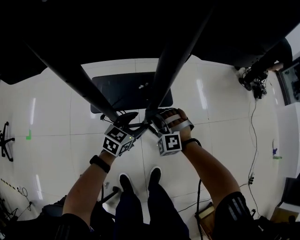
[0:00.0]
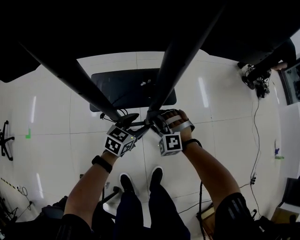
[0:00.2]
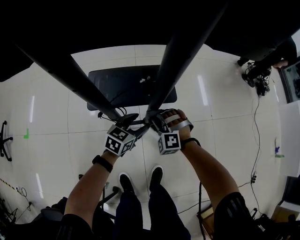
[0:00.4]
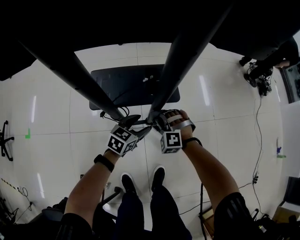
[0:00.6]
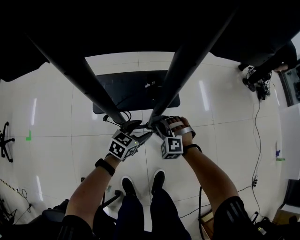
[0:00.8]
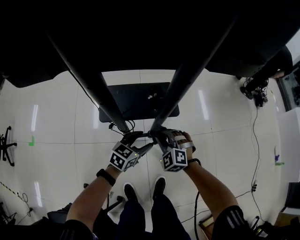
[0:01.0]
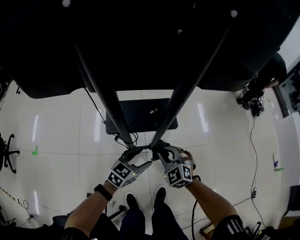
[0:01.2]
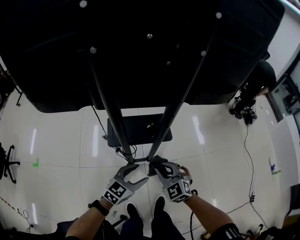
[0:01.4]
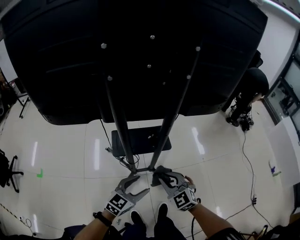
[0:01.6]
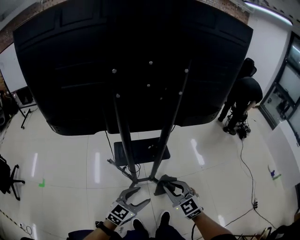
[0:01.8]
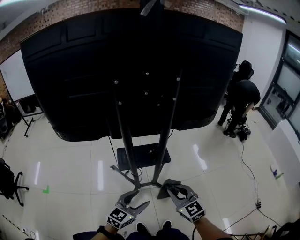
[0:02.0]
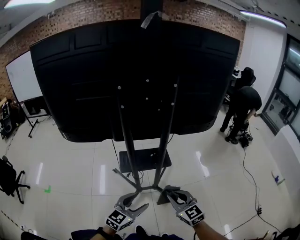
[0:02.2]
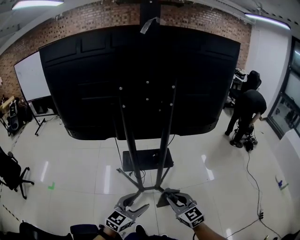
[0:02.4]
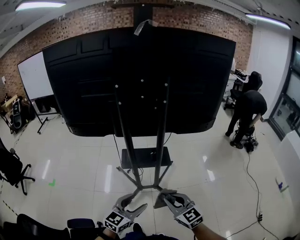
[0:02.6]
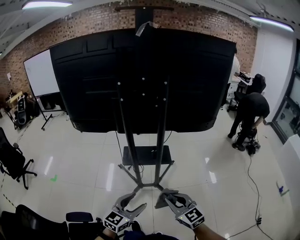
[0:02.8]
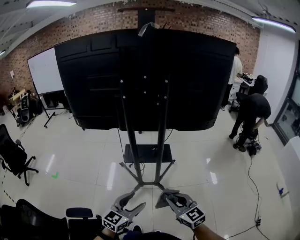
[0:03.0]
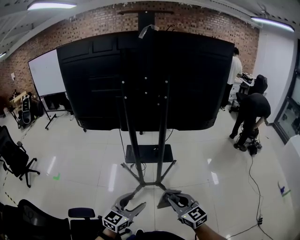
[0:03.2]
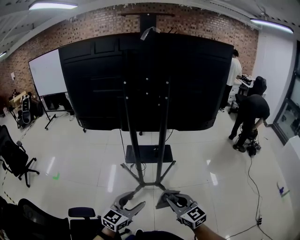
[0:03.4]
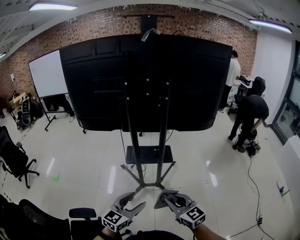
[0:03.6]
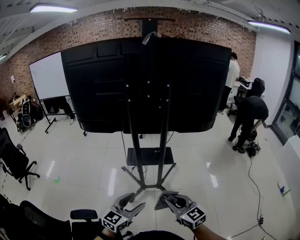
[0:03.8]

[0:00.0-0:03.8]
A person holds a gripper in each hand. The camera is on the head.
0:00.0 to 0:01.2: The right gripper travels backward and upward by some 10 cm, and changes its angle by roughly 40 degrees. The left gripper heads backward, covering roughly 10 cm, and reaches about 10 cm downward, then returns.
0:01.2 to 0:02.6: Both grippers travel together upward and backward, approximately 35 cm. The left gripper changes its angle by about 20 degrees. The right gripper rotates some 30 degrees.
0:02.6 to 0:03.8: The two grippers go approximately 10 cm backward.

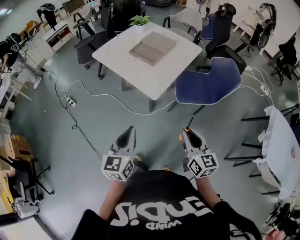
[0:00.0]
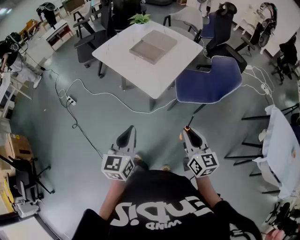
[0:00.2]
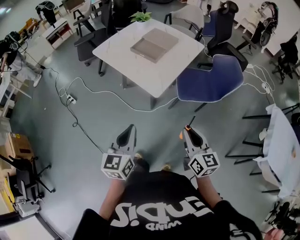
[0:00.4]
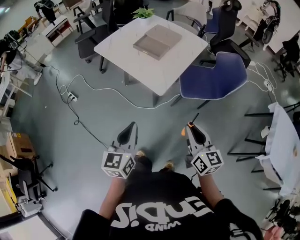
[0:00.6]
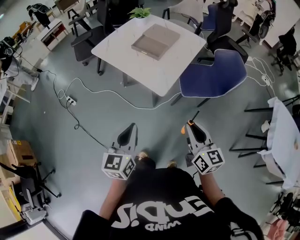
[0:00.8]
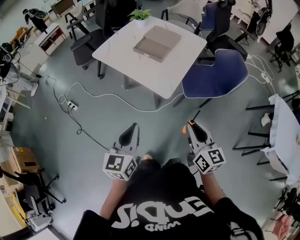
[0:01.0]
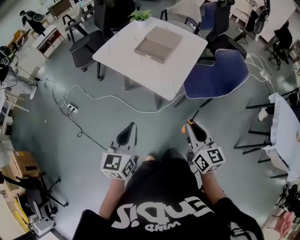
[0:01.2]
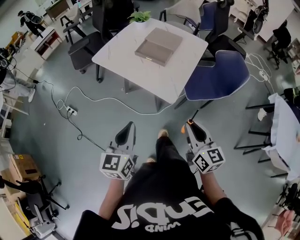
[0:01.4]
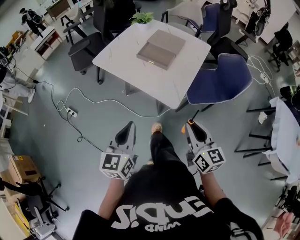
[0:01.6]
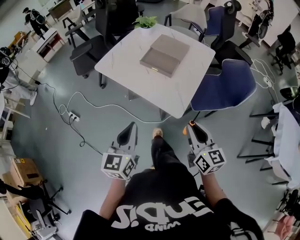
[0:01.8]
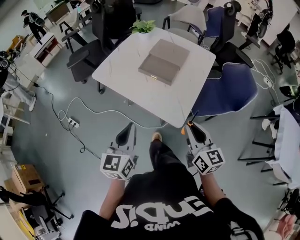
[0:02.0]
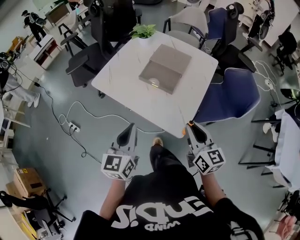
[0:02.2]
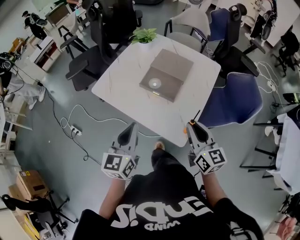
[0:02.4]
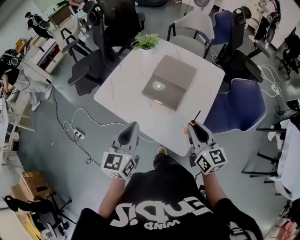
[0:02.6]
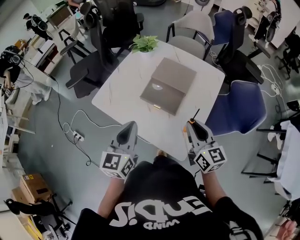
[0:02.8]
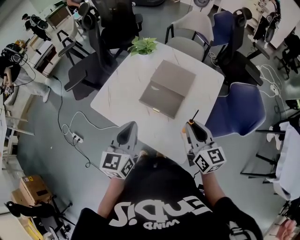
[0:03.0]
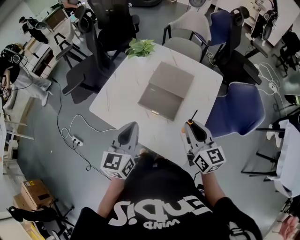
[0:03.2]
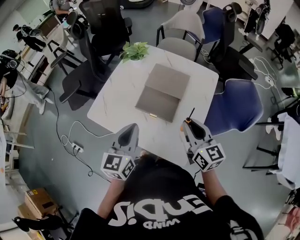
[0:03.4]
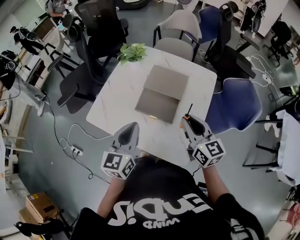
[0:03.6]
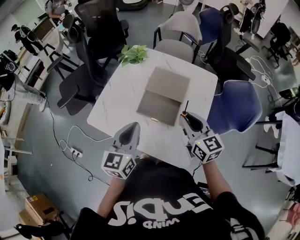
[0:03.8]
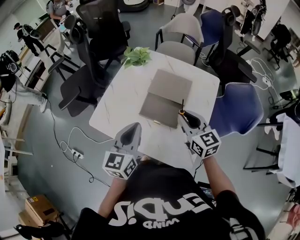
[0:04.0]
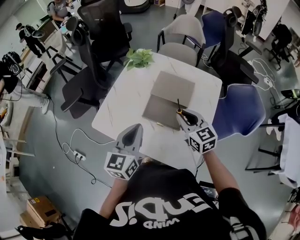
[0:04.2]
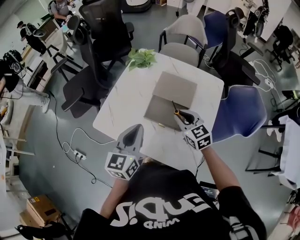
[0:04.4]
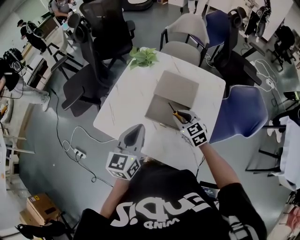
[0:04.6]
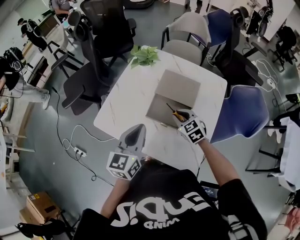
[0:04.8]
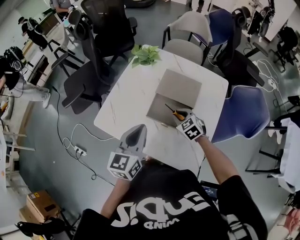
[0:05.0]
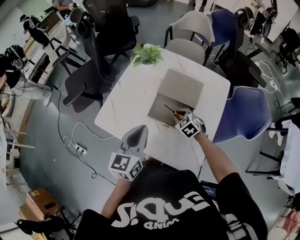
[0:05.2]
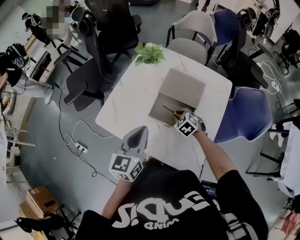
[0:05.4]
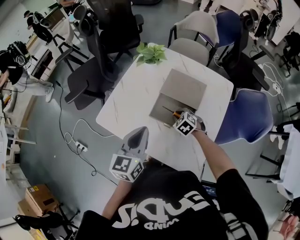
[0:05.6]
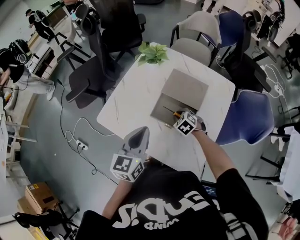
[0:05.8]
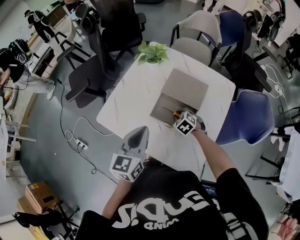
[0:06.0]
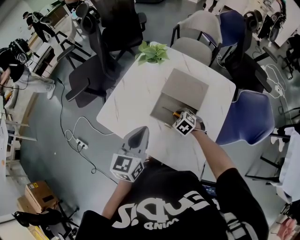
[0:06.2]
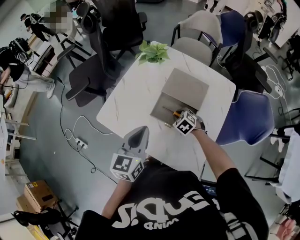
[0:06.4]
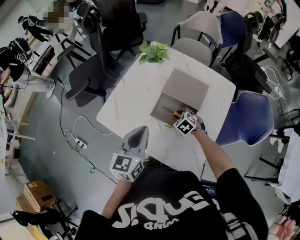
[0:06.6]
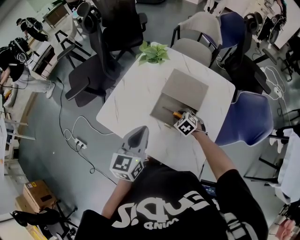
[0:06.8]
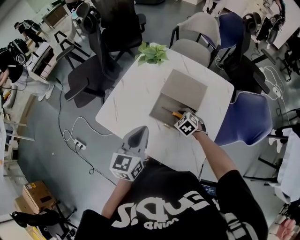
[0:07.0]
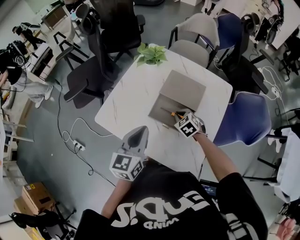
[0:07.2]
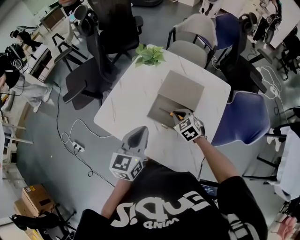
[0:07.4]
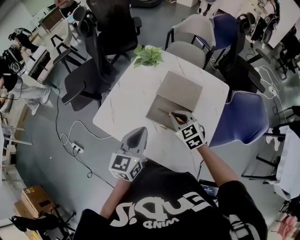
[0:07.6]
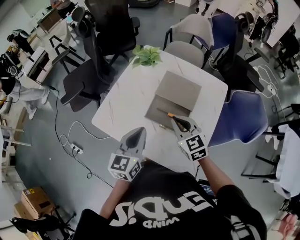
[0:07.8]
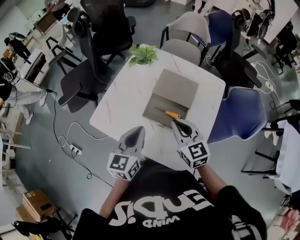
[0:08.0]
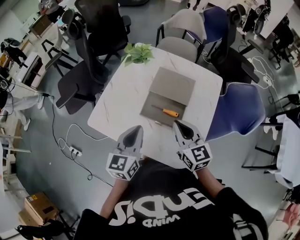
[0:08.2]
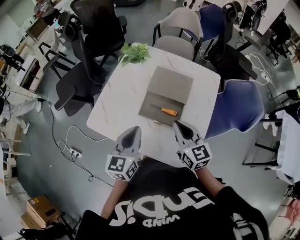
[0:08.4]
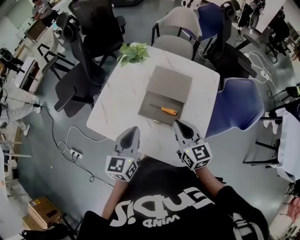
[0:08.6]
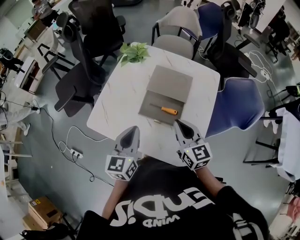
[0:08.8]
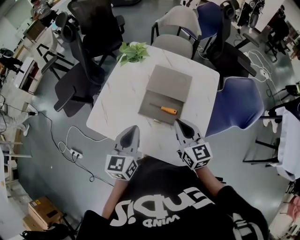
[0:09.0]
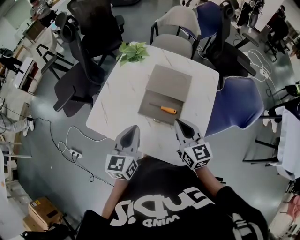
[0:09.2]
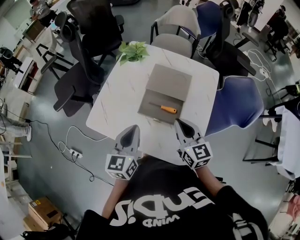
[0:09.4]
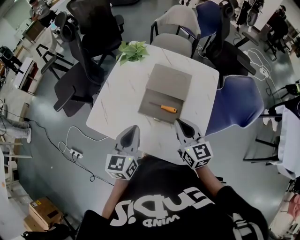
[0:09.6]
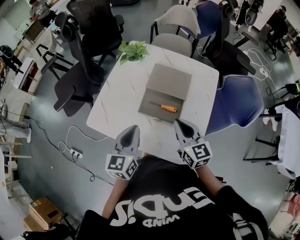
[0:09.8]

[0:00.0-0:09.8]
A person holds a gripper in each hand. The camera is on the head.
0:00.0 to 0:01.4: The two grippers go approximately 15 cm to the left and forward.
0:01.4 to 0:02.8: The two grippers go approximately 35 cm forward.
0:02.8 to 0:04.2: The right gripper moves forward and to the left, some 15 cm, while the left gripper heads forward, covering roughly 10 cm.
0:04.2 to 0:05.6: The right gripper travels downward by some 20 cm, and angles its fingers downward, by roughly 40 degrees.
0:05.6 to 0:07.0: There are only small adjustments of the grippers.
0:07.0 to 0:08.4: The right gripper goes about 25 cm upward and backward, angles its fingers upward, by approximately 40 degrees, and closes its fingers.
0:08.4 to 0:09.8: Neither gripper changes place.

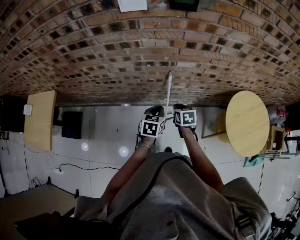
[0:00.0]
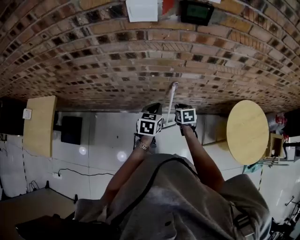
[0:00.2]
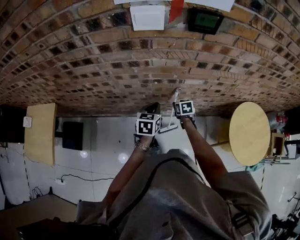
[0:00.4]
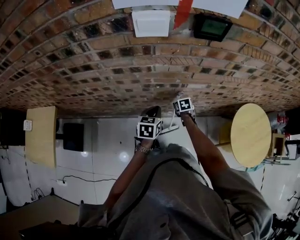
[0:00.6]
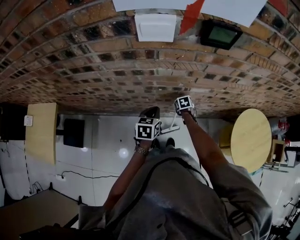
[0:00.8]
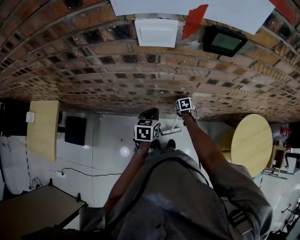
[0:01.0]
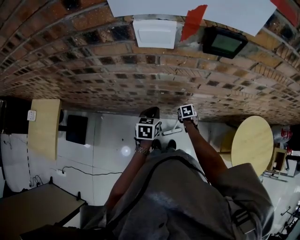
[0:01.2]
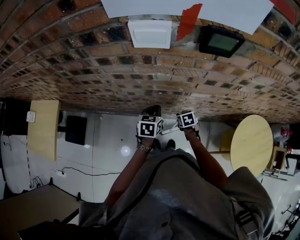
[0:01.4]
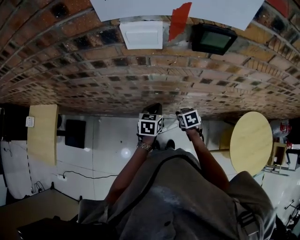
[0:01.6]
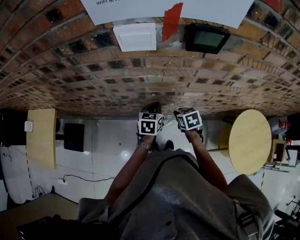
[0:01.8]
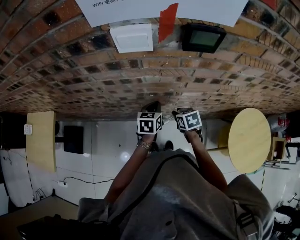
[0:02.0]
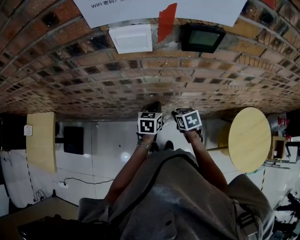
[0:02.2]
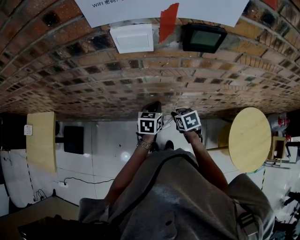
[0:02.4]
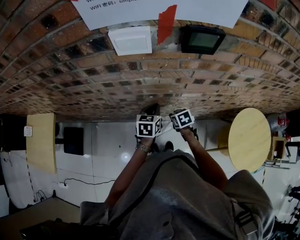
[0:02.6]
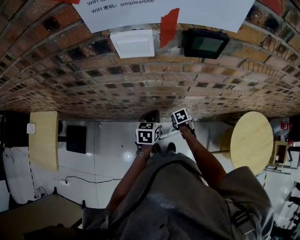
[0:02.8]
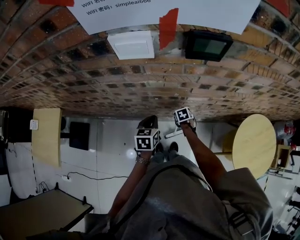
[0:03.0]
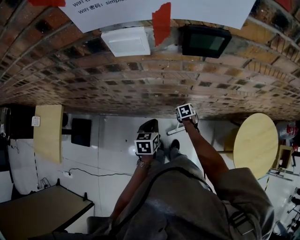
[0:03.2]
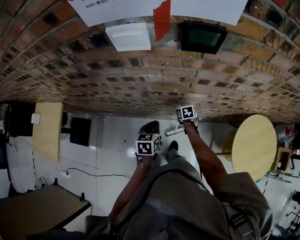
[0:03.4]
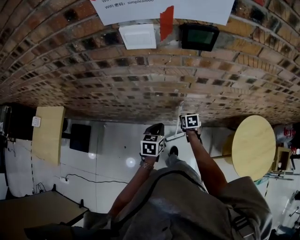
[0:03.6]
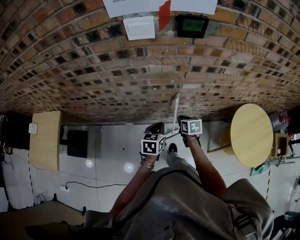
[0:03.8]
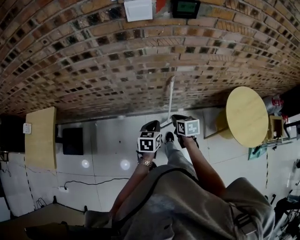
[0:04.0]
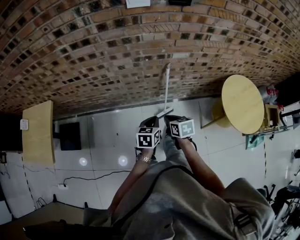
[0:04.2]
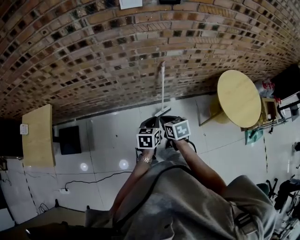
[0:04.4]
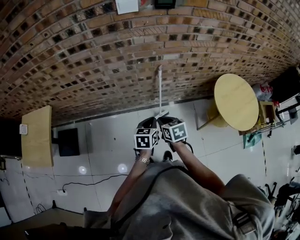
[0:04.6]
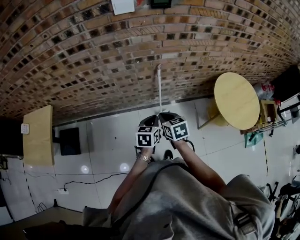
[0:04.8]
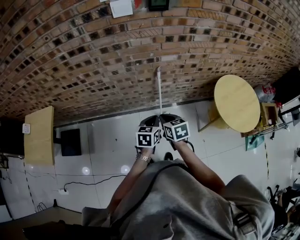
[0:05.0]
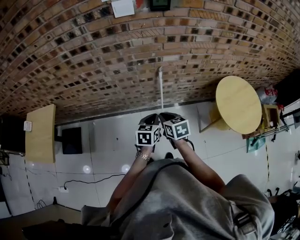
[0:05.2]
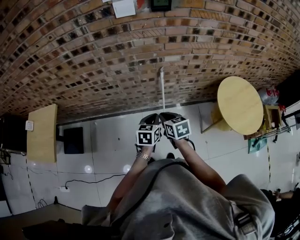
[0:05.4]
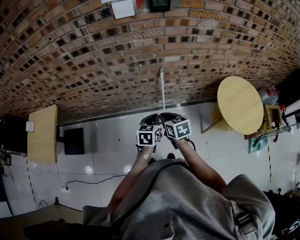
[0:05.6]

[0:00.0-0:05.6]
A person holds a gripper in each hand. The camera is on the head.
0:00.0 to 0:01.4: The right gripper is displaced forward and downward by some 15 cm, and opens its fingers, while the left gripper travels forward and to the left by roughly 20 cm.
0:01.4 to 0:02.8: The right gripper moves about 15 cm upward and comes back.
0:02.8 to 0:04.2: The left gripper heads backward, covering approximately 30 cm. Meanwhile the right gripper moves backward and upward, roughly 30 cm, rotates about 30 degrees, and closes its fingers.
0:04.2 to 0:05.6: The left gripper shifts roughly 5 cm to the right. Meanwhile the right gripper is displaced upward by roughly 5 cm.

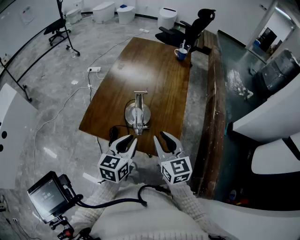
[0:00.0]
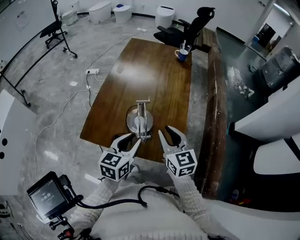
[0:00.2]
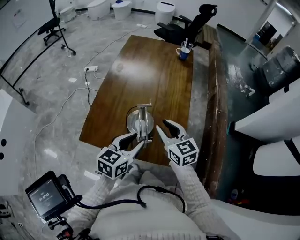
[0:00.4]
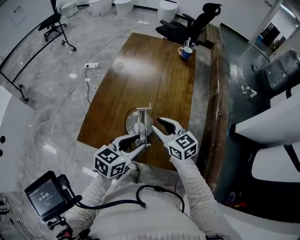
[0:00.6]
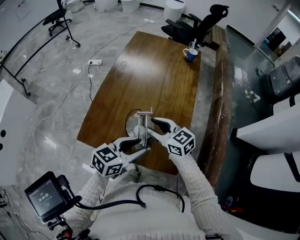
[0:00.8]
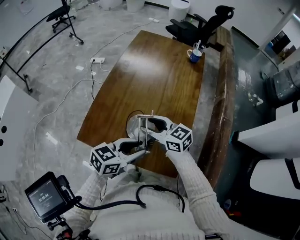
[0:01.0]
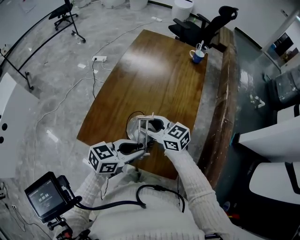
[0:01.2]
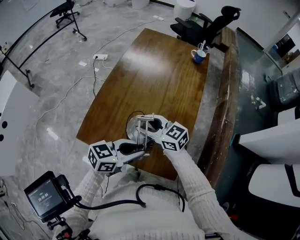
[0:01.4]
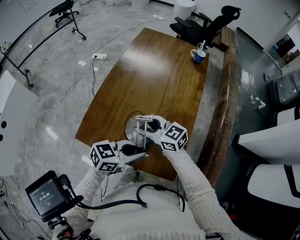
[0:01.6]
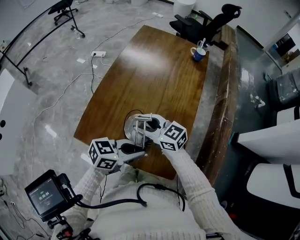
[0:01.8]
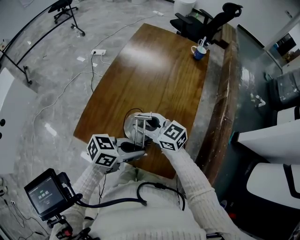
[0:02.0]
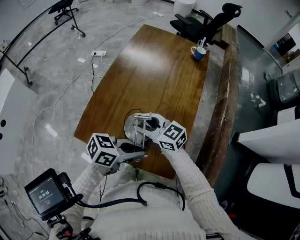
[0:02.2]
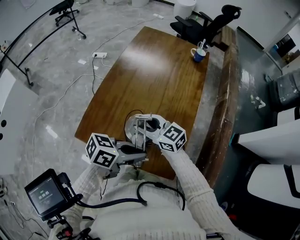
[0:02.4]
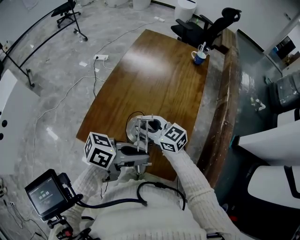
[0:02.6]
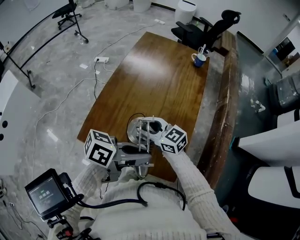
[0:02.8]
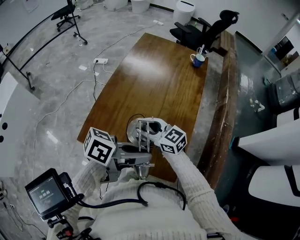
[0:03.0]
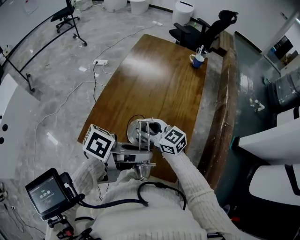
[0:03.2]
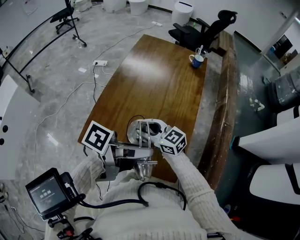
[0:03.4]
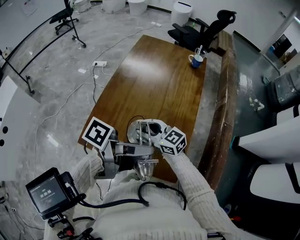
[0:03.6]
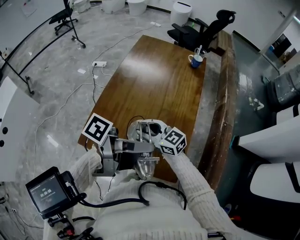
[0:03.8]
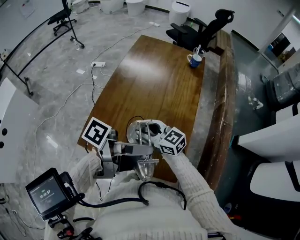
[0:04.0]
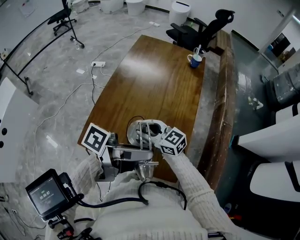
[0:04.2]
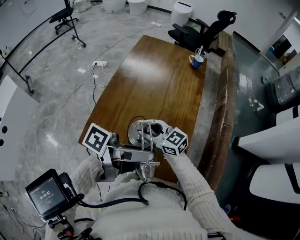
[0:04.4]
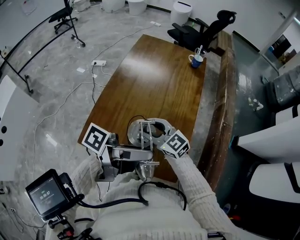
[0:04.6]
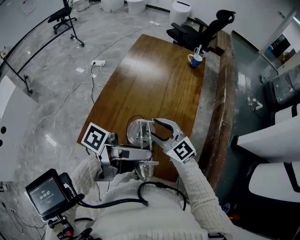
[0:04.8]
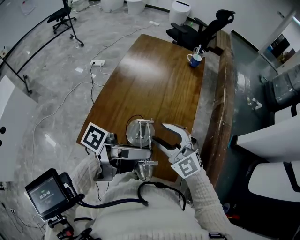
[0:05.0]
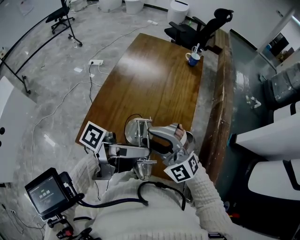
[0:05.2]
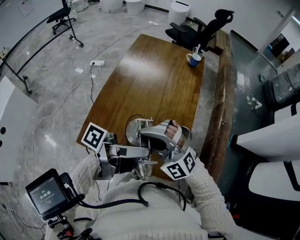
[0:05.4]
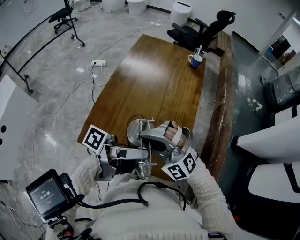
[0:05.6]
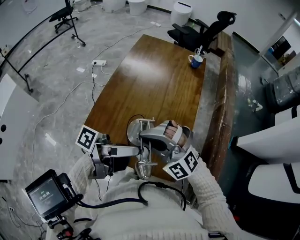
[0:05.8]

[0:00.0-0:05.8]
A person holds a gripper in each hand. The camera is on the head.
0:00.0 to 0:01.4: The left gripper changes place by about 10 cm, and changes its angle by some 40 degrees; the right gripper ends up some 20 cm from where it was, changes its angle by about 40 degrees, and opens.
0:01.4 to 0:02.8: The left gripper is displaced upward by about 10 cm, and turns by approximately 30 degrees.
0:02.8 to 0:04.4: The left gripper goes about 5 cm upward, swivels roughly 30 degrees, and opens up.
0:04.4 to 0:05.8: The right gripper goes roughly 10 cm upward, rotates around the line of its fingers by some 70 degrees, counterclockwise from behind, and closes up.
